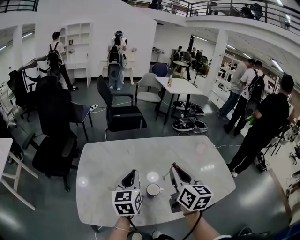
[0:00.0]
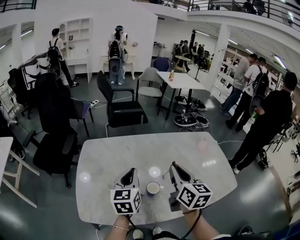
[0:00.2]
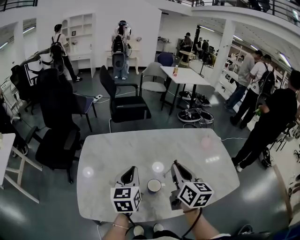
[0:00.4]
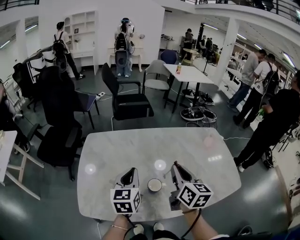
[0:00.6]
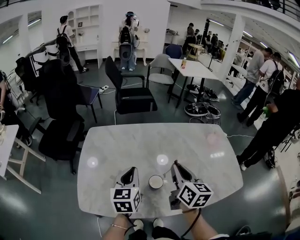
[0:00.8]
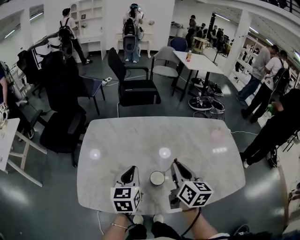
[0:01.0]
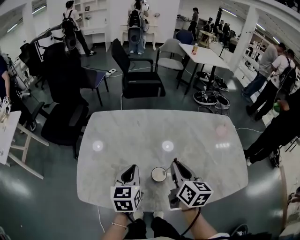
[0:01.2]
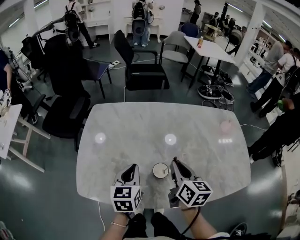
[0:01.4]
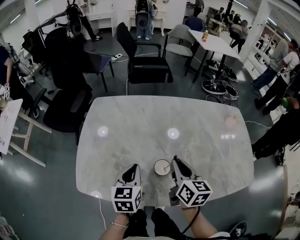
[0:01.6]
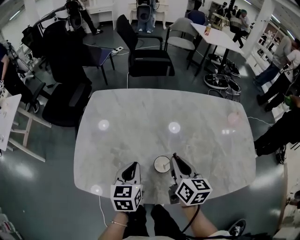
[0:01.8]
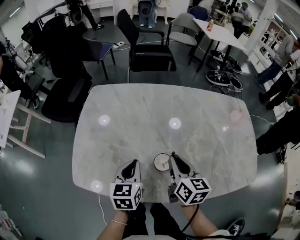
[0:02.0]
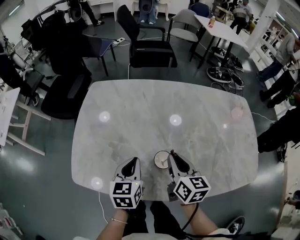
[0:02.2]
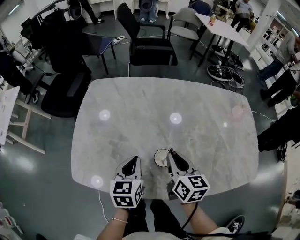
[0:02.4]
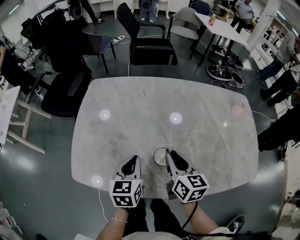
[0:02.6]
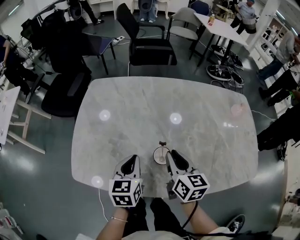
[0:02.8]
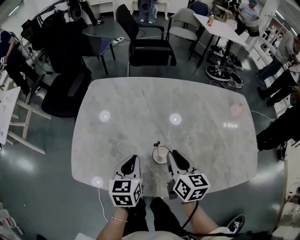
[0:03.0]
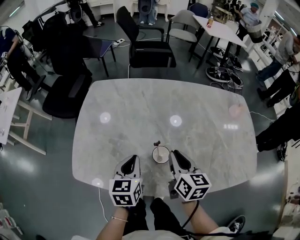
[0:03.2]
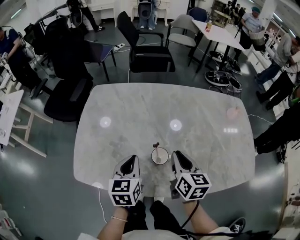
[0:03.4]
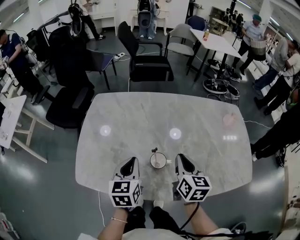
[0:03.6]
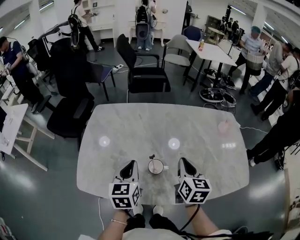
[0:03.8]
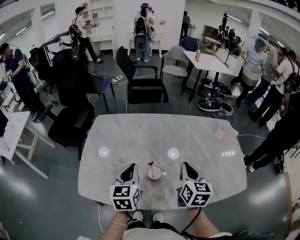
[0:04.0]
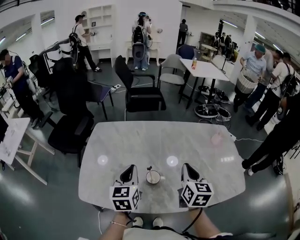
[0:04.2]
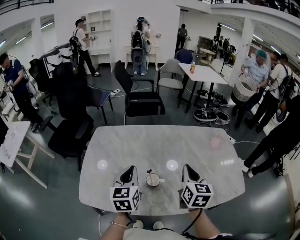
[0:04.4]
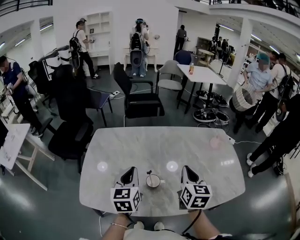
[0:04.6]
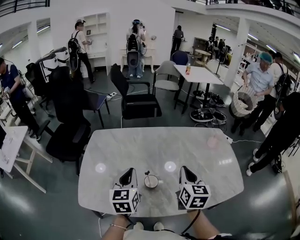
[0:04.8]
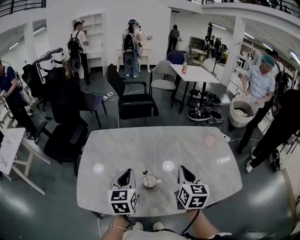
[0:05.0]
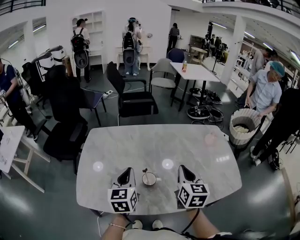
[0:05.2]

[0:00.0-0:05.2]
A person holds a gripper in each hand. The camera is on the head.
0:00.0 to 0:01.8: The two grippers go approximately 15 cm downward. The left gripper turns by some 20 degrees. The right gripper swivels approximately 20 degrees.
0:01.8 to 0:03.4: The grippers make only small movements.
0:03.4 to 0:05.2: The left gripper goes about 10 cm upward. The right gripper is displaced upward and to the right by roughly 10 cm.

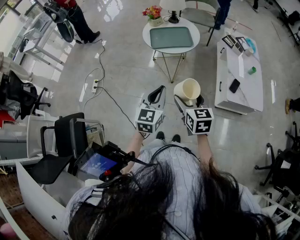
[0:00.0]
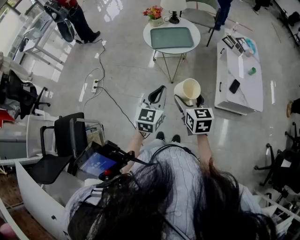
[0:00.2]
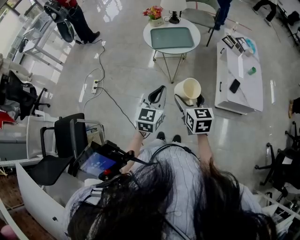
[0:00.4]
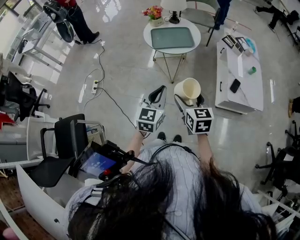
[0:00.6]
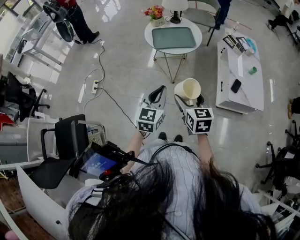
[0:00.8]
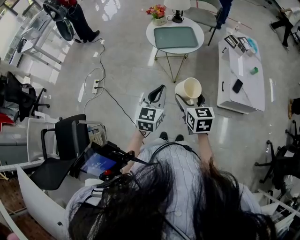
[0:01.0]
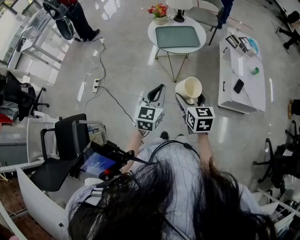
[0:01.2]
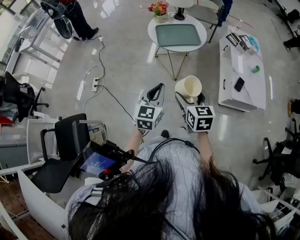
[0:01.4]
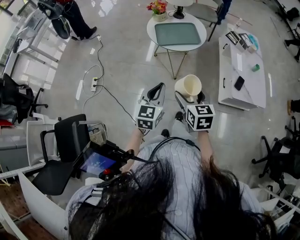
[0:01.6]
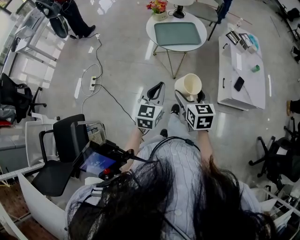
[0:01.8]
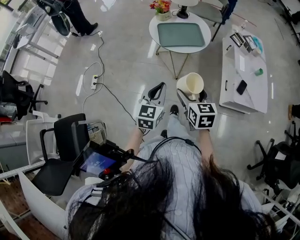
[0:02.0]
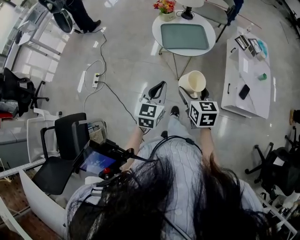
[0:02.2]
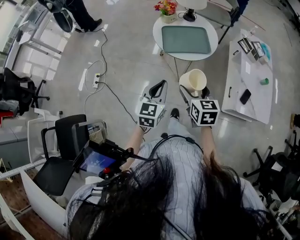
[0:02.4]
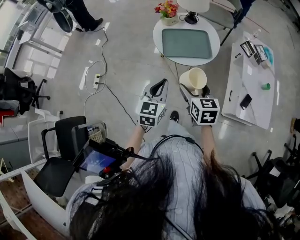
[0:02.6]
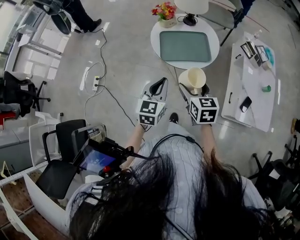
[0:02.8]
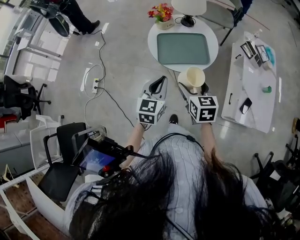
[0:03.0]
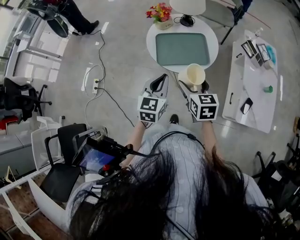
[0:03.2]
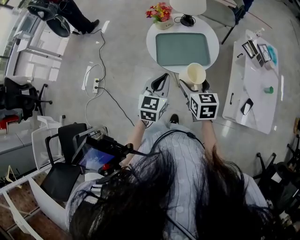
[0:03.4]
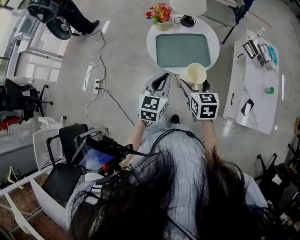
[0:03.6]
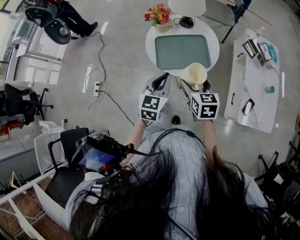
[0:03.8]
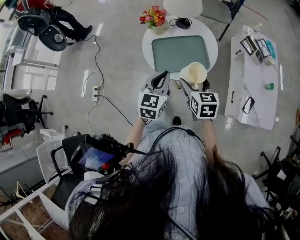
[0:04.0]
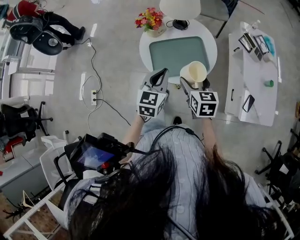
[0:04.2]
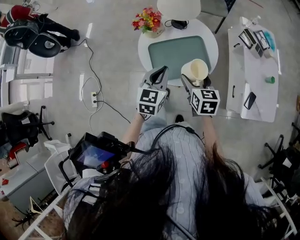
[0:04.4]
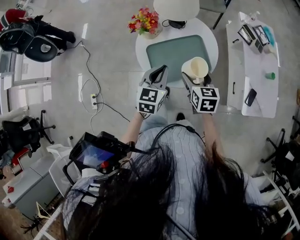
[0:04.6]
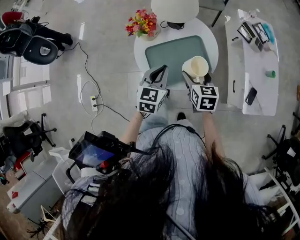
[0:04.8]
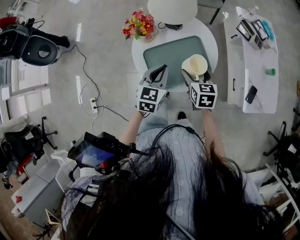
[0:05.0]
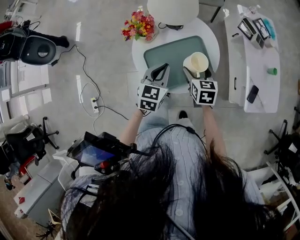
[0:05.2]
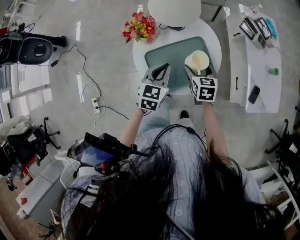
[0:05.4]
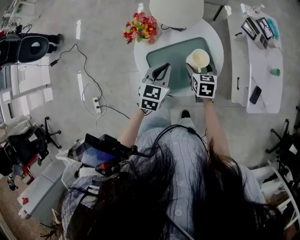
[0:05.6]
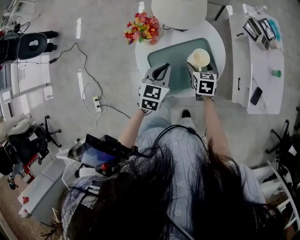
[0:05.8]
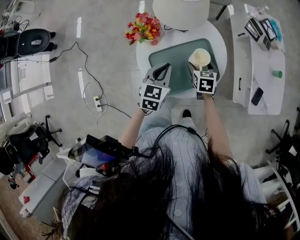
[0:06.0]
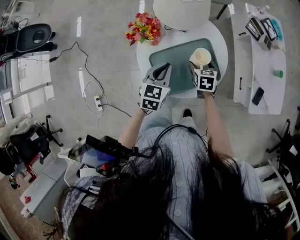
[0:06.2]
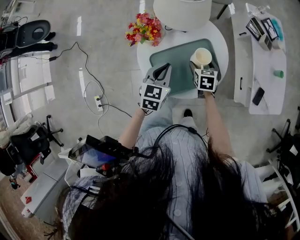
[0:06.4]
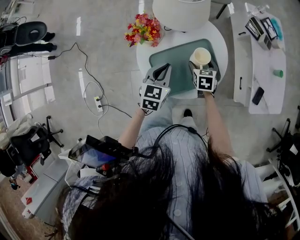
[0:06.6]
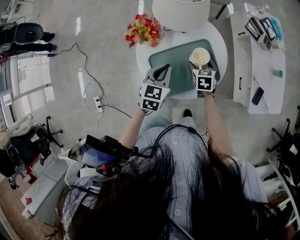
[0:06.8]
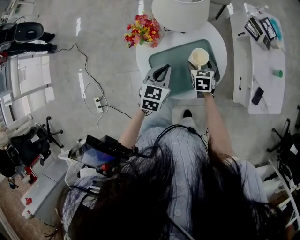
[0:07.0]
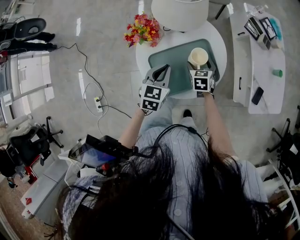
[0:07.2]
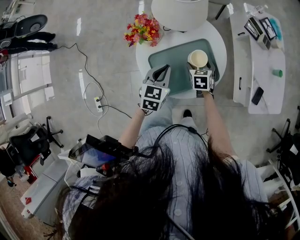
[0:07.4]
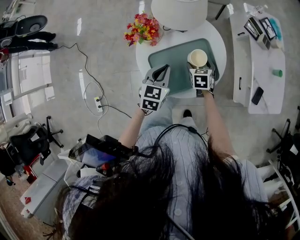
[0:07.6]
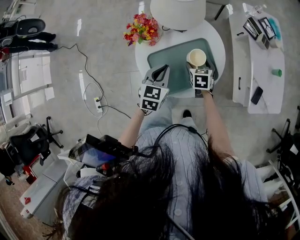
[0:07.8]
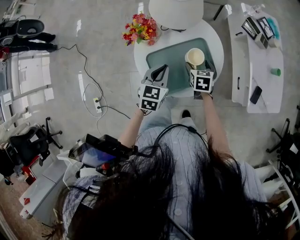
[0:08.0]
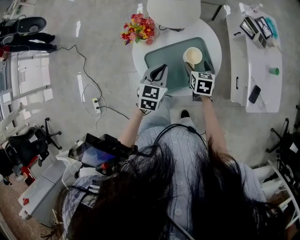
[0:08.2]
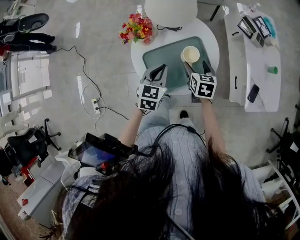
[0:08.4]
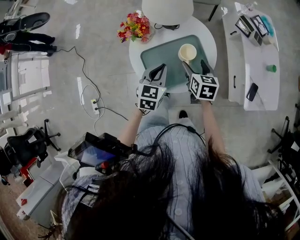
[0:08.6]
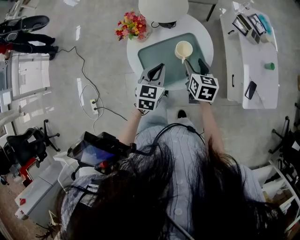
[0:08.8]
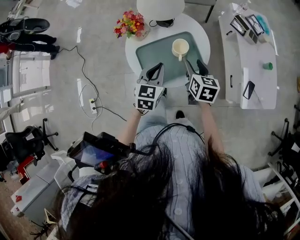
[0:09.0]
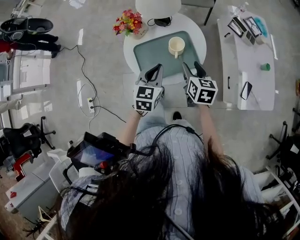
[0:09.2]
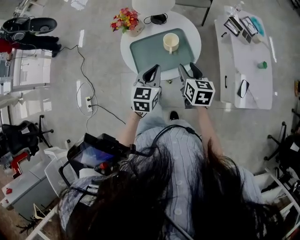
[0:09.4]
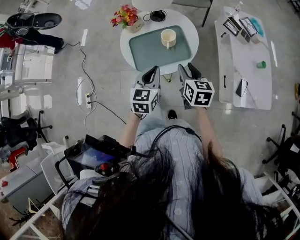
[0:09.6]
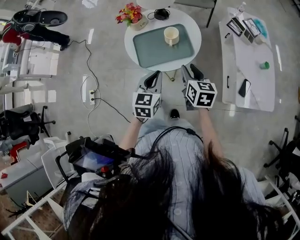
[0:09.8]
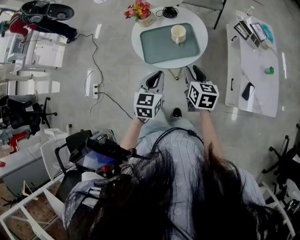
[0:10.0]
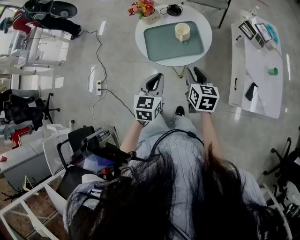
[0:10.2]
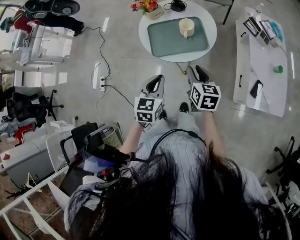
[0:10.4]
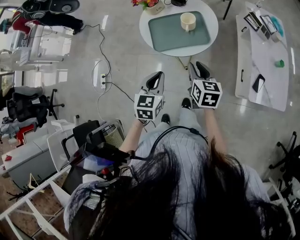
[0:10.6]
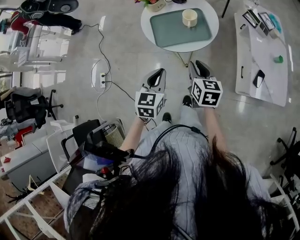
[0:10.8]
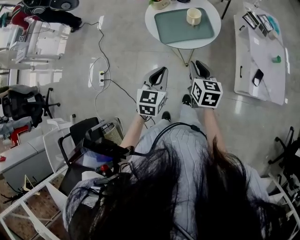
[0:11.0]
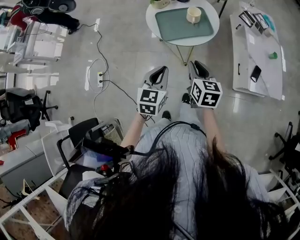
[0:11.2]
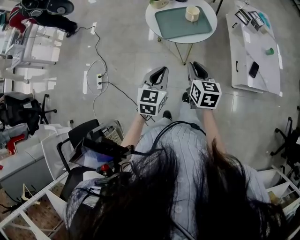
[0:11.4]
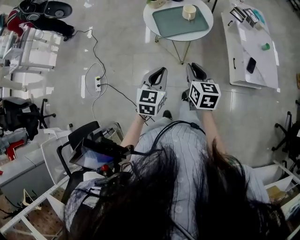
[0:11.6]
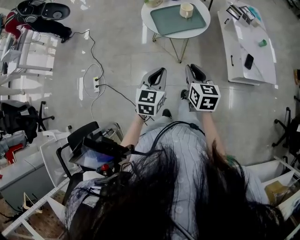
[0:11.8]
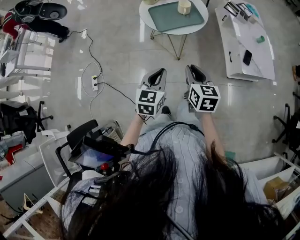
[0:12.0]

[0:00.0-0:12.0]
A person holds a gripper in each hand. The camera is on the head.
0:00.0 to 0:01.6: The grippers both shift to the left by roughly 10 cm.
0:01.6 to 0:03.0: Both grippers move forward, roughly 25 cm.
0:03.0 to 0:04.4: Both grippers travel together forward, about 15 cm.
0:04.4 to 0:06.0: The right gripper is displaced downward and forward by approximately 20 cm. The left gripper is displaced forward and downward by some 15 cm.
0:06.0 to 0:07.6: The grippers stay close to where they were, moving slightly.
0:07.6 to 0:09.0: The right gripper moves upward and backward, some 15 cm, rotates about 30 degrees, and closes; the left gripper travels to the right and backward by about 10 cm.
0:09.0 to 0:10.4: Both grippers travel together backward, some 20 cm.
0:10.4 to 0:12.0: Both grippers move backward and to the left, some 25 cm.

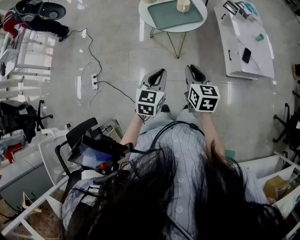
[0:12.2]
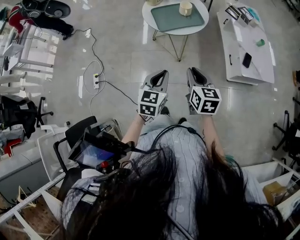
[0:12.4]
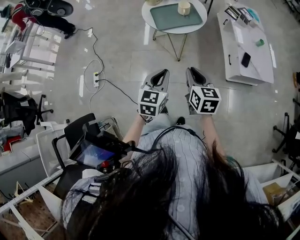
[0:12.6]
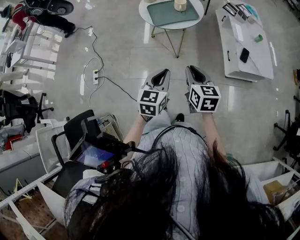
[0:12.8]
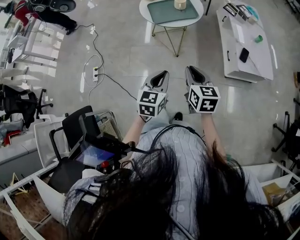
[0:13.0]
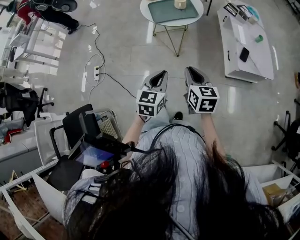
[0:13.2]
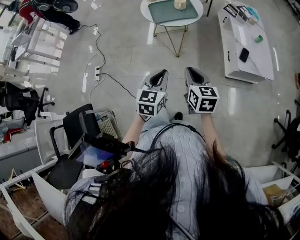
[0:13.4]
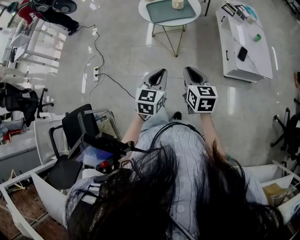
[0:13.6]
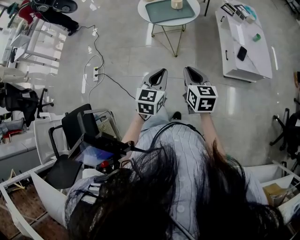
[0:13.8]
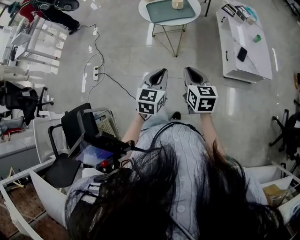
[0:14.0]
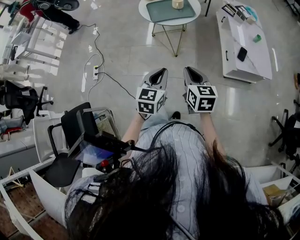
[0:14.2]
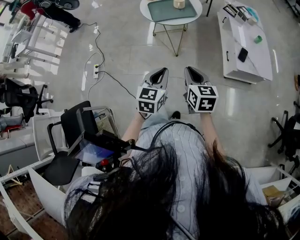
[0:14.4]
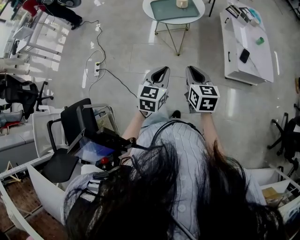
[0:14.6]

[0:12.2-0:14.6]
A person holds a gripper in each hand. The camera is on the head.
0:12.2 to 0:13.4: Both grippers travel together backward and to the right, approximately 15 cm.
0:13.4 to 0:14.6: There are only small adjustments of the grippers.

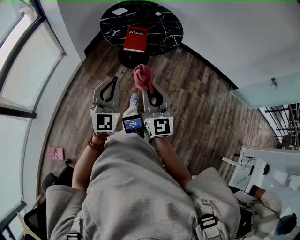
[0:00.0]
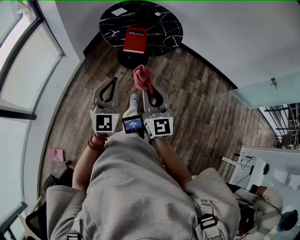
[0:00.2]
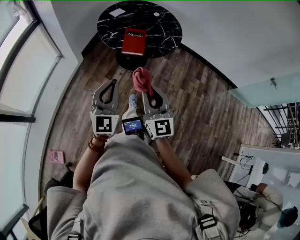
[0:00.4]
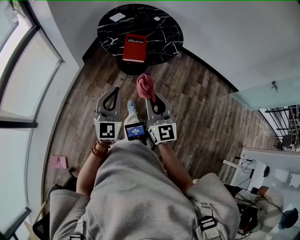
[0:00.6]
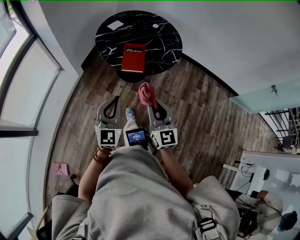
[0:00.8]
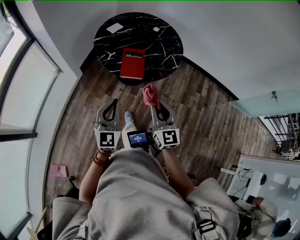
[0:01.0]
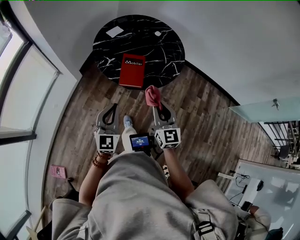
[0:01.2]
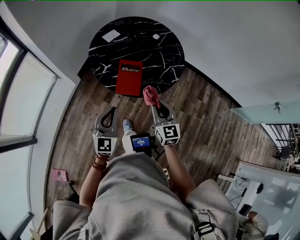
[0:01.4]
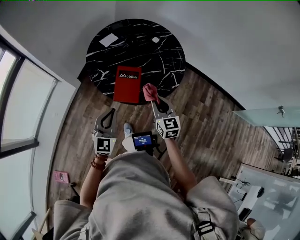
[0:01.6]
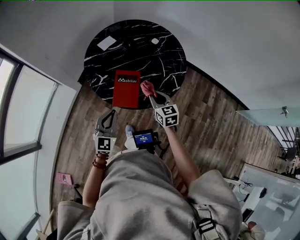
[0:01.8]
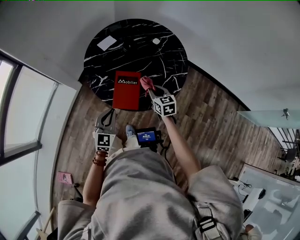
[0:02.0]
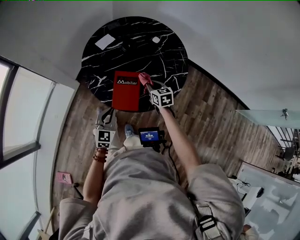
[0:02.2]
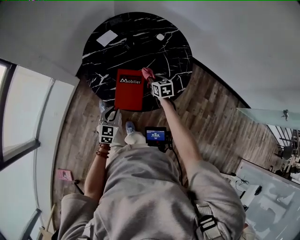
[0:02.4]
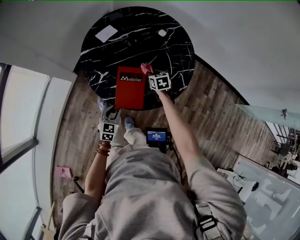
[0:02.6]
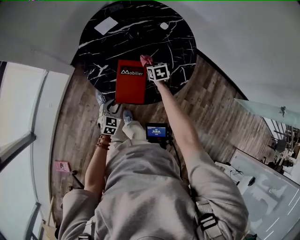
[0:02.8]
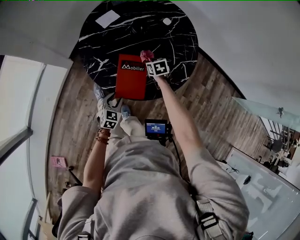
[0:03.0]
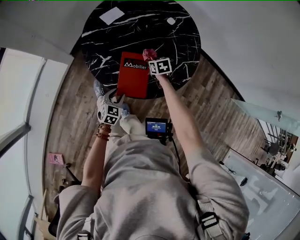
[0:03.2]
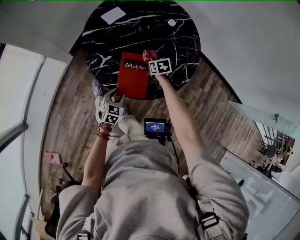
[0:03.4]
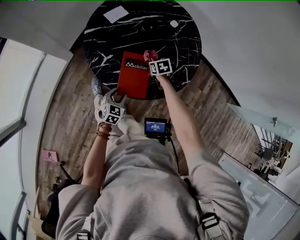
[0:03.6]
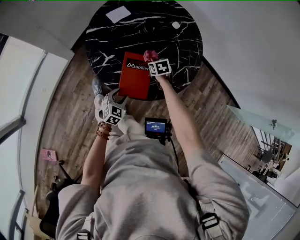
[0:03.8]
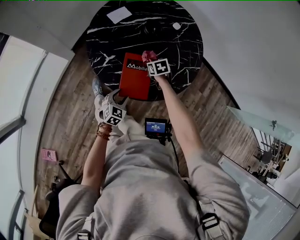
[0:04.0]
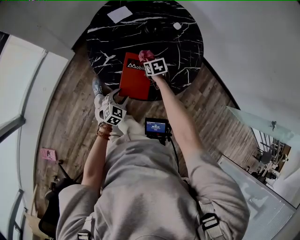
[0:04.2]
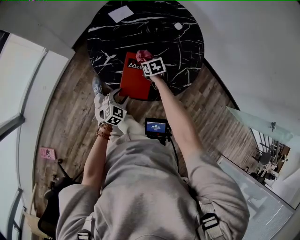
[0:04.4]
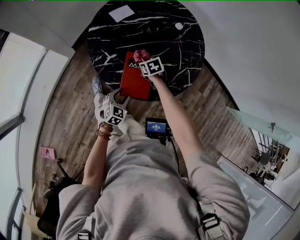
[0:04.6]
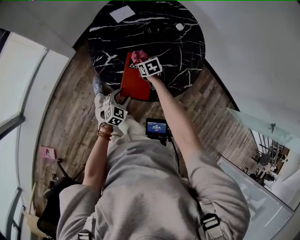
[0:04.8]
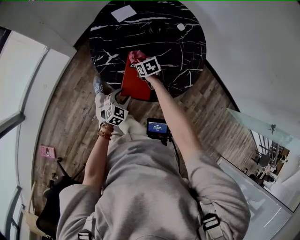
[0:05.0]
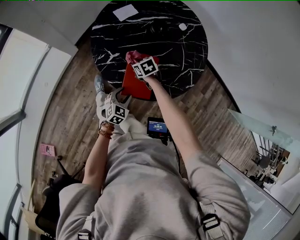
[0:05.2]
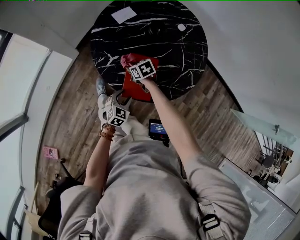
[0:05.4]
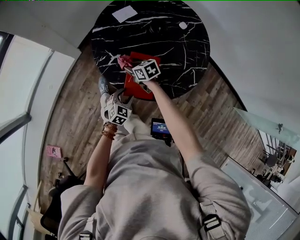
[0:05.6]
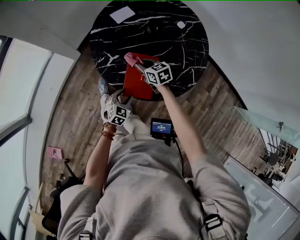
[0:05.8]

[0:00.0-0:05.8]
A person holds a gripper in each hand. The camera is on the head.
0:00.0 to 0:01.4: The two grippers go approximately 30 cm forward.
0:01.4 to 0:02.8: The right gripper moves forward and downward, about 40 cm, and angles its fingers downward, by some 40 degrees. Meanwhile the left gripper moves downward and forward, some 30 cm, tips its fingers downward by approximately 30 degrees, and opens up.
0:02.8 to 0:04.4: The right gripper moves to the left, approximately 10 cm.
0:04.4 to 0:05.8: The right gripper is displaced upward and to the left by approximately 10 cm, and turns by roughly 20 degrees.
